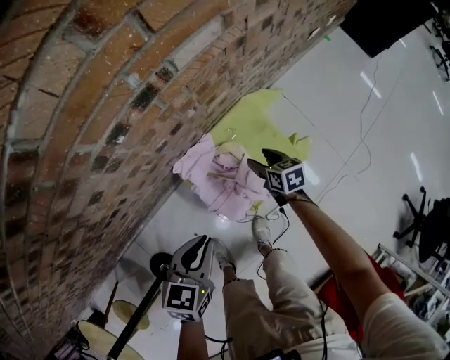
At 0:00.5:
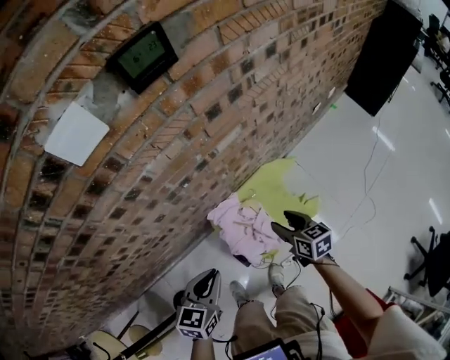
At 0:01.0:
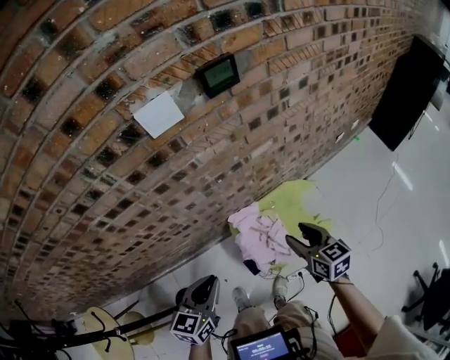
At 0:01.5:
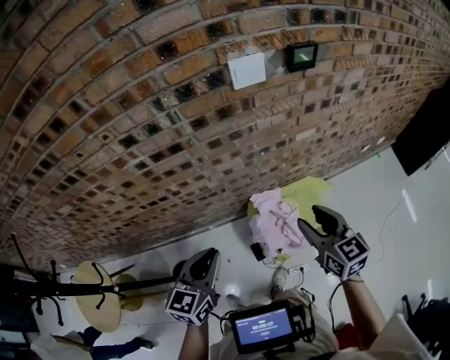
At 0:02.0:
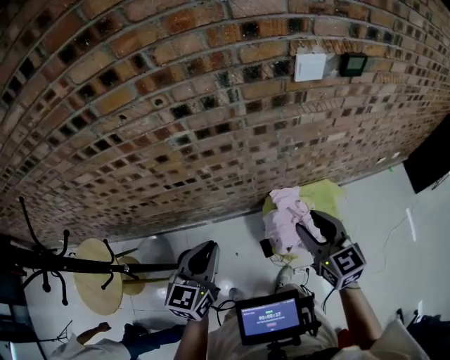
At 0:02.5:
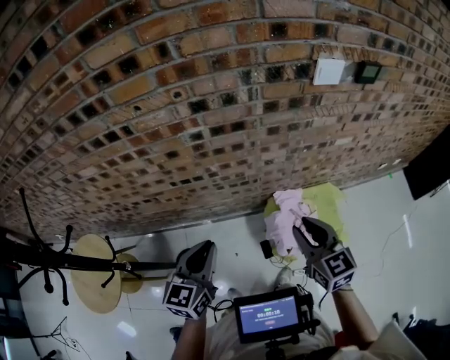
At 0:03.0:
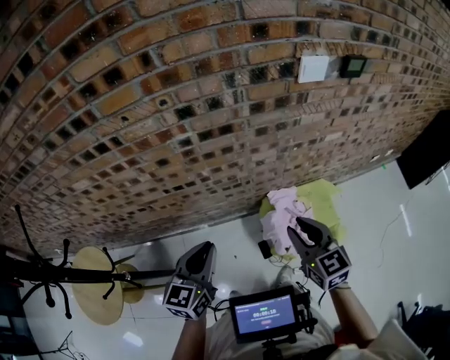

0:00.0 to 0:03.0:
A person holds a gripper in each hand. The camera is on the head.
0:00.0 to 0:01.5: The right gripper goes approximately 70 cm upward, and turns by some 40 degrees; the left gripper travels upward, backward and to the left by about 50 cm, and rotates some 40 degrees.
0:01.5 to 0:03.0: Both grippers move to the left, approximately 20 cm. The right gripper closes up.

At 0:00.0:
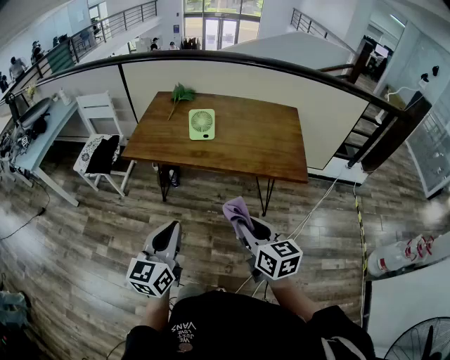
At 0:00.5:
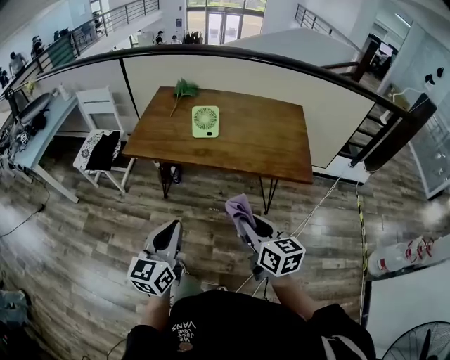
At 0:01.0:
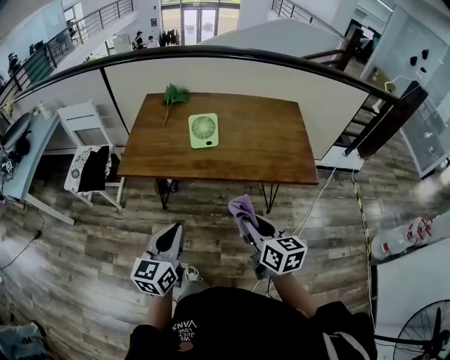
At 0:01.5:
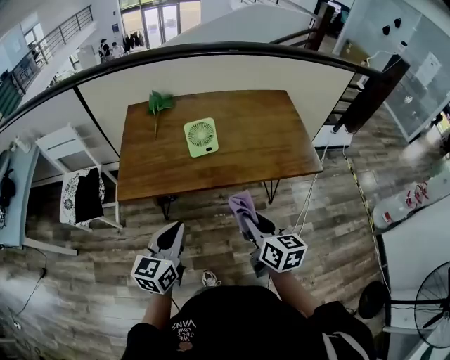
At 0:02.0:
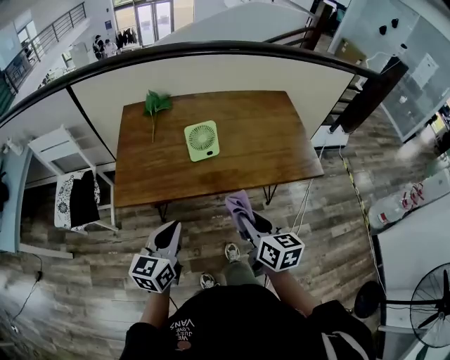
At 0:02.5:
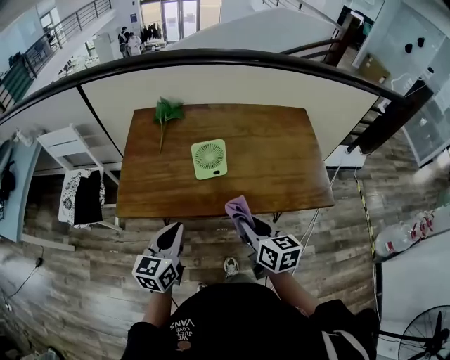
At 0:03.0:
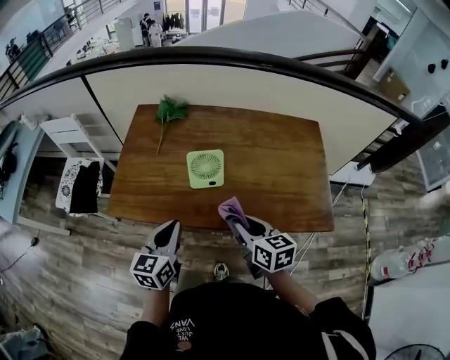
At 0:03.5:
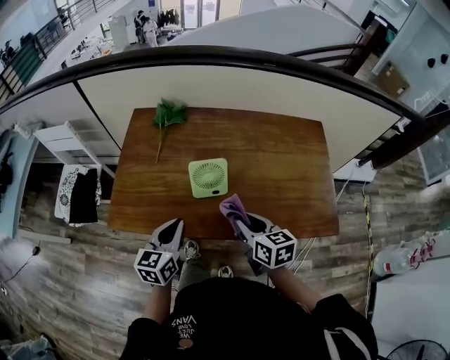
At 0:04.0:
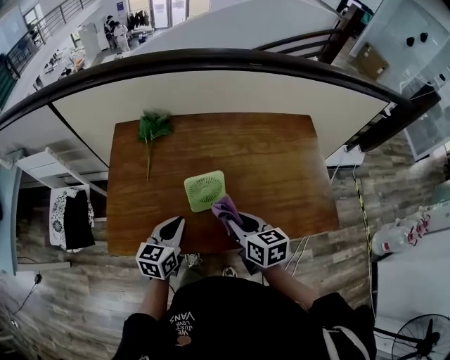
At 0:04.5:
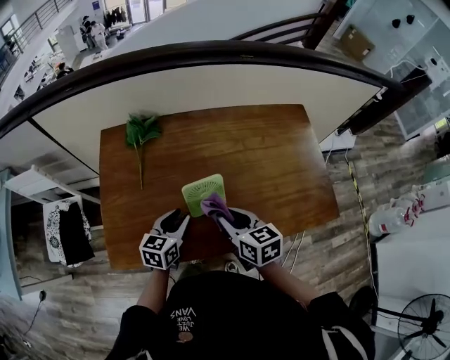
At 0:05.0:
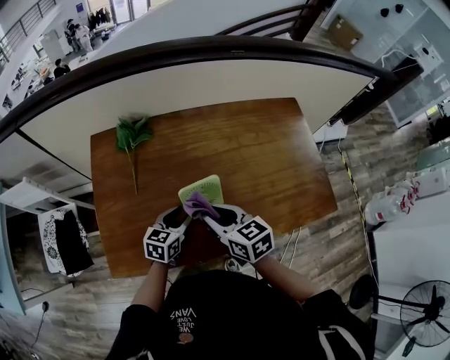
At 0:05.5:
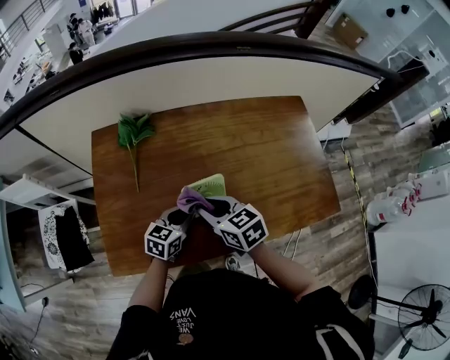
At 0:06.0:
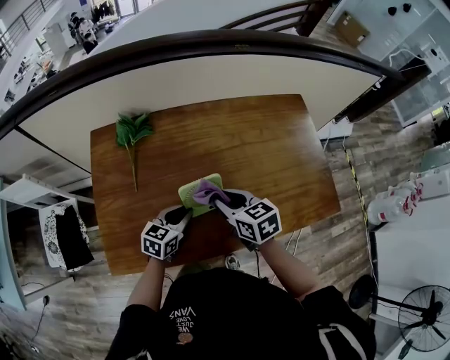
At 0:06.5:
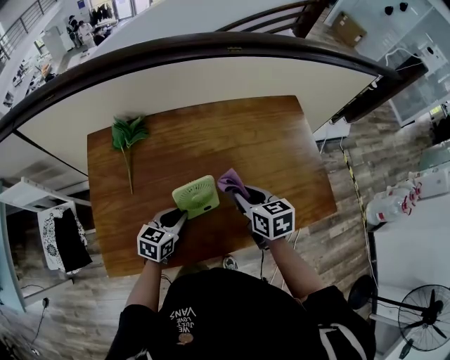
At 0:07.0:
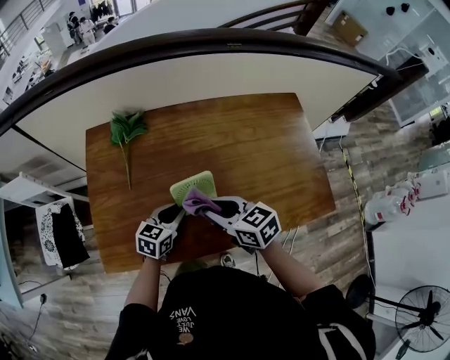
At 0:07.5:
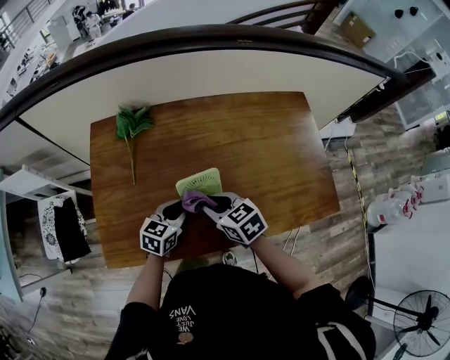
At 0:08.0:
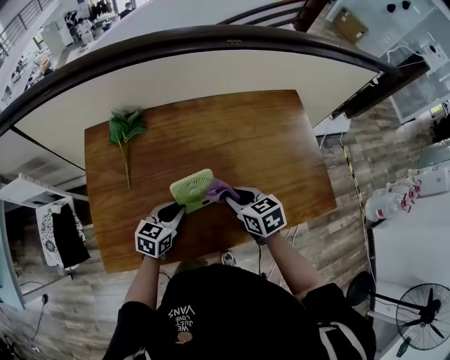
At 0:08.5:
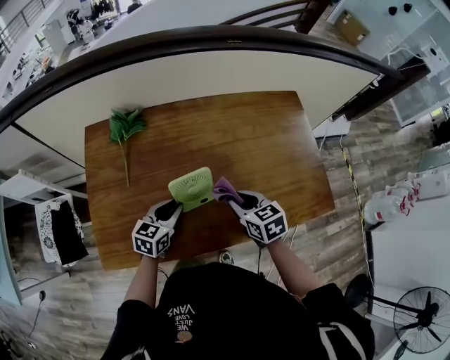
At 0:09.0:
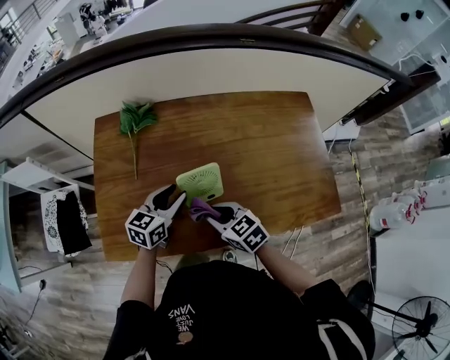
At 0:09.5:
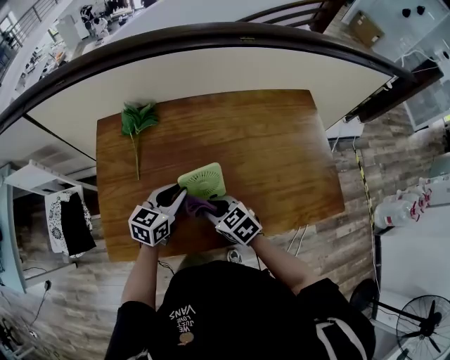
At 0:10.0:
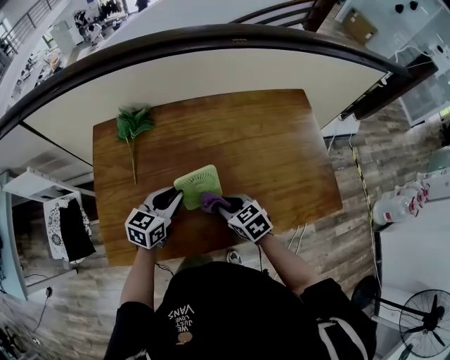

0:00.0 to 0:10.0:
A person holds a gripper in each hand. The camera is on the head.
0:00.0 to 0:02.0: Both grippers move forward and to the left, roughly 25 cm. The right gripper changes its angle by some 20 degrees, while the left gripper swivels some 20 degrees.
0:02.0 to 0:04.0: Both grippers move forward, approximately 25 cm.
0:04.0 to 0:06.0: The left gripper shifts approximately 10 cm downward and forward, and swivels about 20 degrees. Meanwhile the right gripper shifts approximately 10 cm forward.
0:06.0 to 0:08.0: The right gripper swings left and right, some 10 cm each way, with 2 reversals.
0:08.0 to 0:10.0: The right gripper goes to the left and returns, some 10 cm each way; the left gripper is displaced upward by approximately 5 cm.

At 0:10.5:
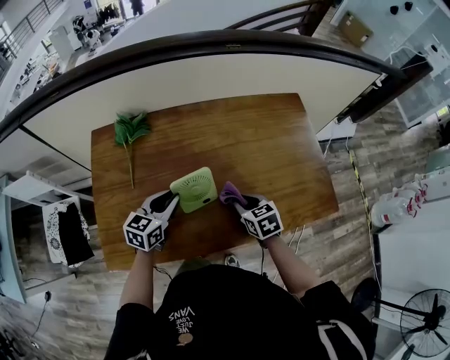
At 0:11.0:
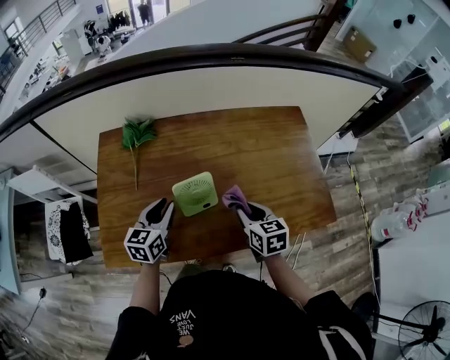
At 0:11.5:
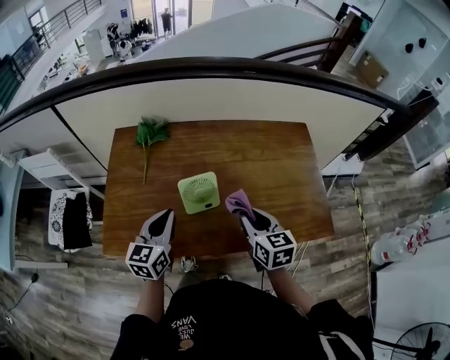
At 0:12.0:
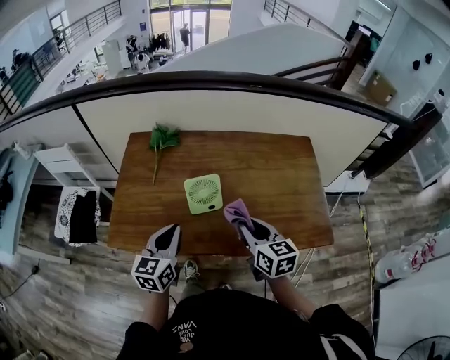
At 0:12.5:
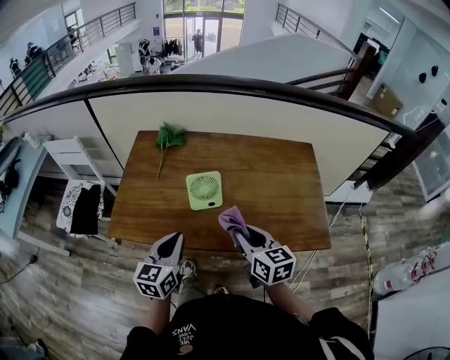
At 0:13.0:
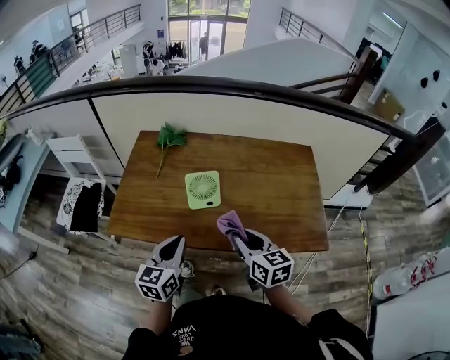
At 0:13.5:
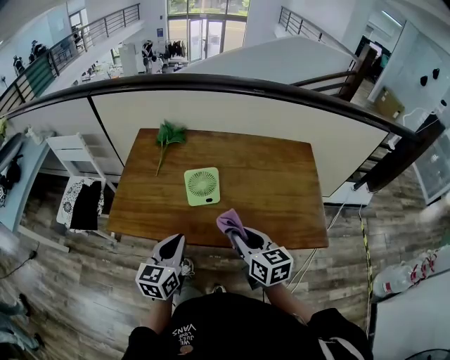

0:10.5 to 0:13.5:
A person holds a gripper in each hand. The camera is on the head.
0:10.5 to 0:12.0: The right gripper heads upward and backward, covering about 15 cm, and turns by some 30 degrees; the left gripper travels backward and upward by approximately 20 cm, and swivels approximately 30 degrees.
0:12.0 to 0:13.5: The grippers both shift backward by roughly 5 cm.

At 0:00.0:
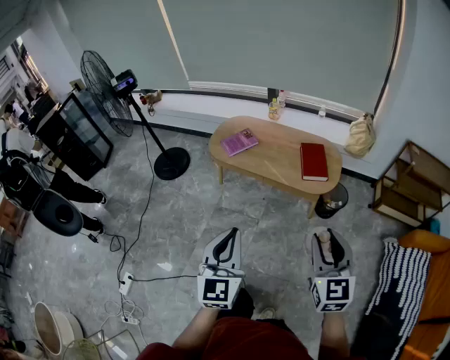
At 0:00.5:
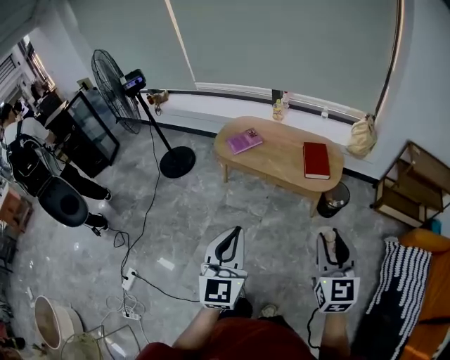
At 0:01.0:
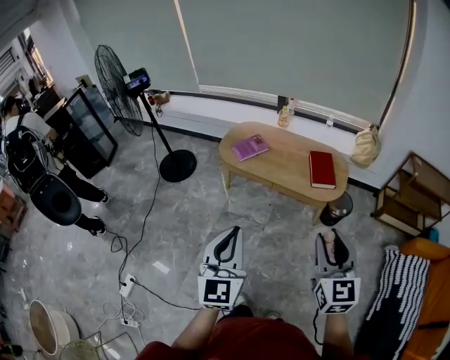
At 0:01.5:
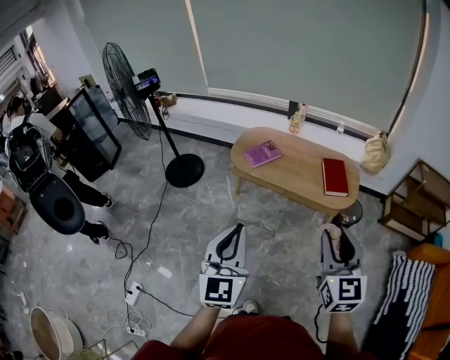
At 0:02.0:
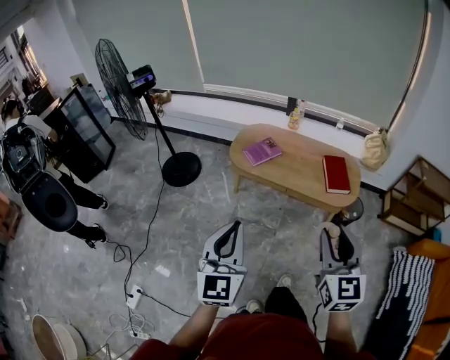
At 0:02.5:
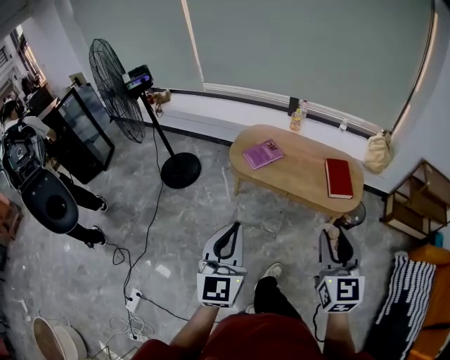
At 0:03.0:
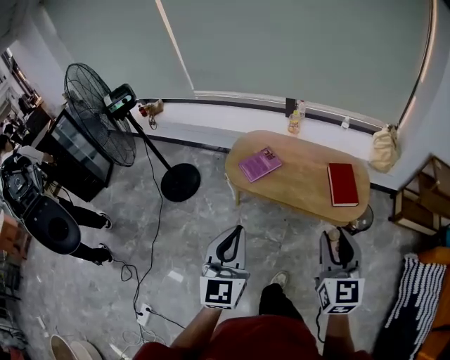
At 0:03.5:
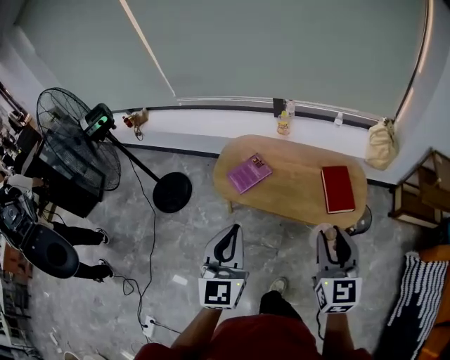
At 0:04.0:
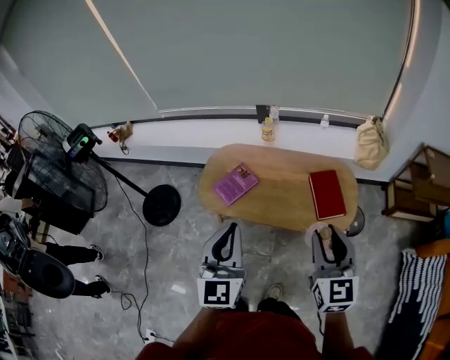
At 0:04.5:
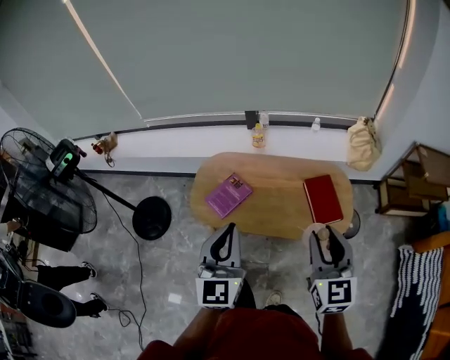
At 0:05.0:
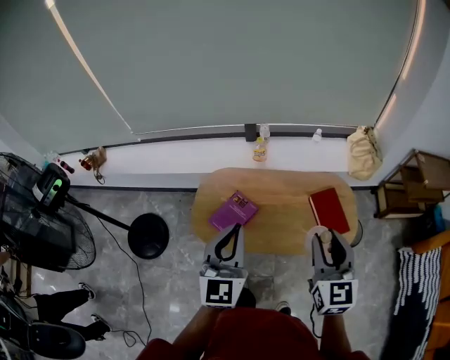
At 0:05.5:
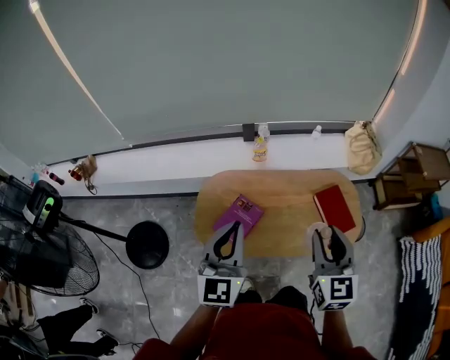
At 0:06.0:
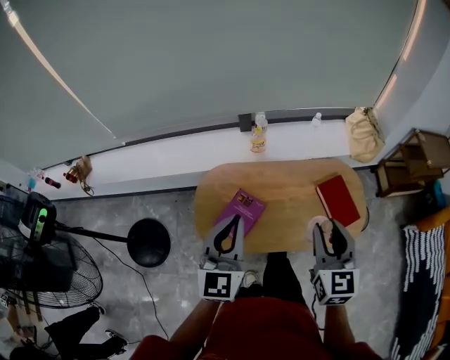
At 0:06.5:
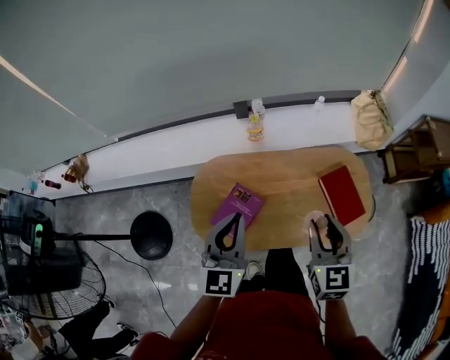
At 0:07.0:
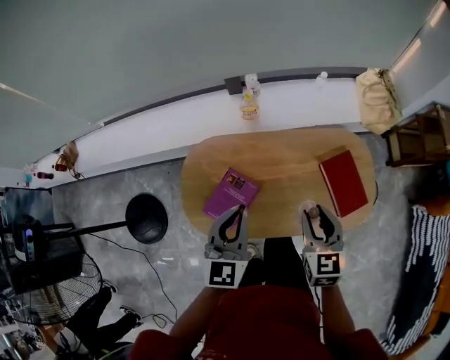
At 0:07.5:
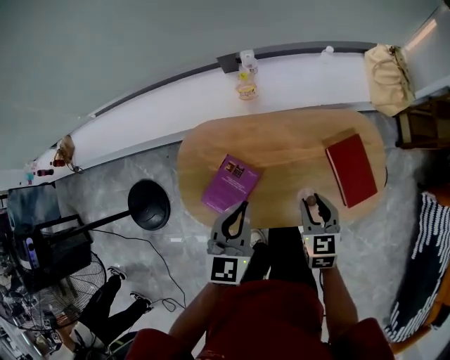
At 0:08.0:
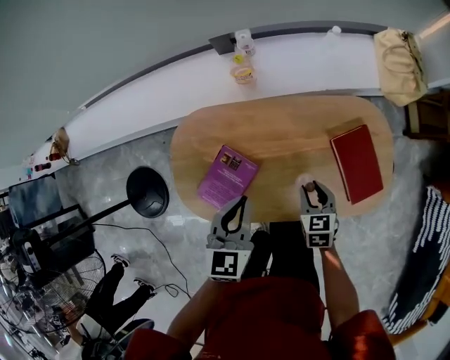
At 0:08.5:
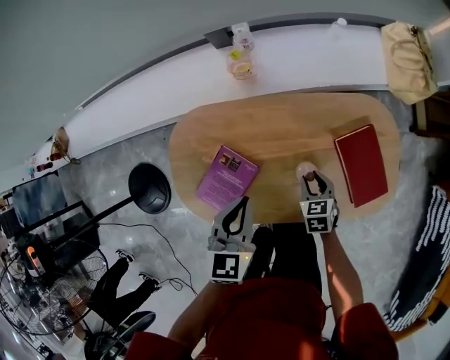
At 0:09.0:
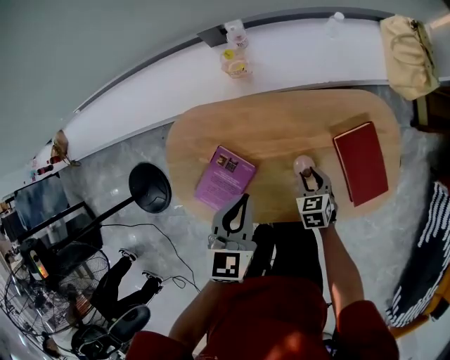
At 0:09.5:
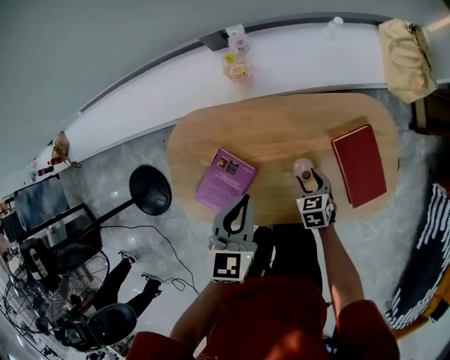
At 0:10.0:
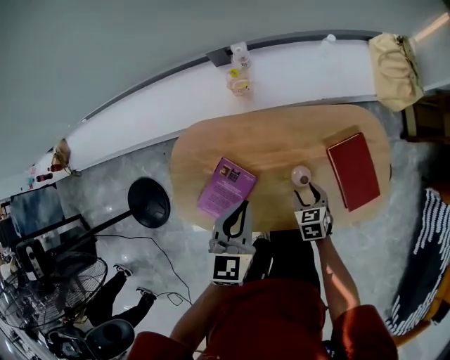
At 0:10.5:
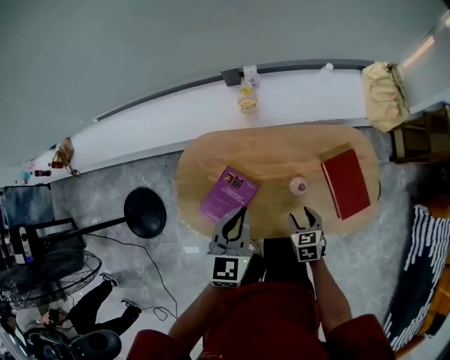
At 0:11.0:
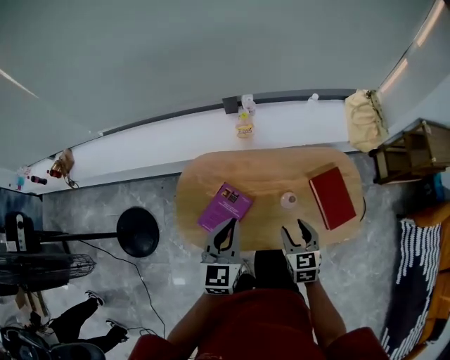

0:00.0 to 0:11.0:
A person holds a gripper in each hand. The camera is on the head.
0:00.0 to 0:02.0: The two grippers go some 20 cm to the left.
0:02.0 to 0:03.5: Both grippers move forward, approximately 30 cm.
0:03.5 to 0:05.5: The two grippers go approximately 30 cm forward and to the left. The left gripper rotates some 20 degrees.
0:05.5 to 0:07.5: Both grippers move downward and forward, some 30 cm. The right gripper rotates roughly 30 degrees. Meanwhile the left gripper rotates some 20 degrees.
0:07.5 to 0:09.0: The left gripper heads downward and forward, covering about 10 cm. The right gripper is displaced downward by about 20 cm.
0:09.0 to 0:11.0: The left gripper travels upward, backward and to the left by approximately 20 cm; the right gripper is displaced upward and backward by some 25 cm, and changes its angle by about 20 degrees.
